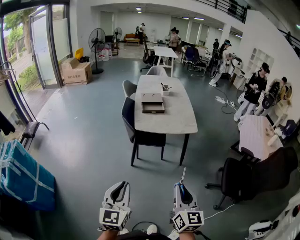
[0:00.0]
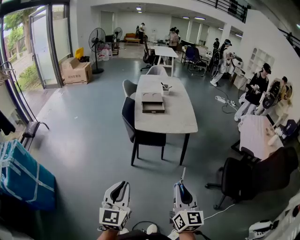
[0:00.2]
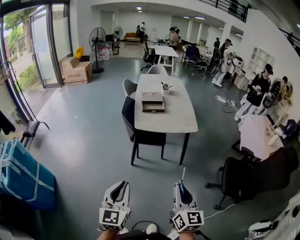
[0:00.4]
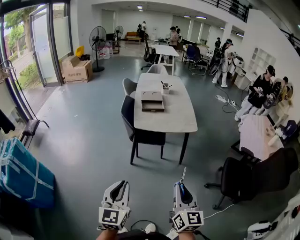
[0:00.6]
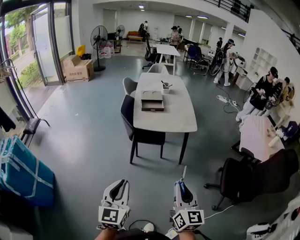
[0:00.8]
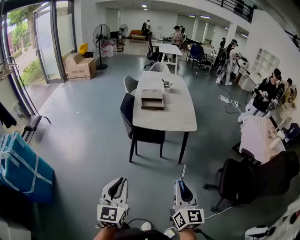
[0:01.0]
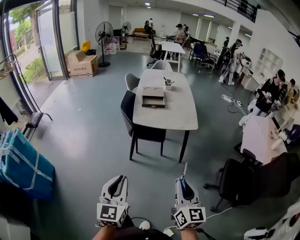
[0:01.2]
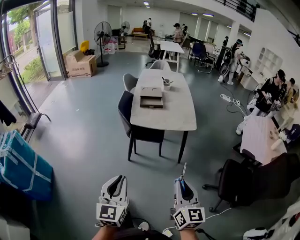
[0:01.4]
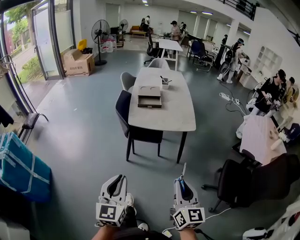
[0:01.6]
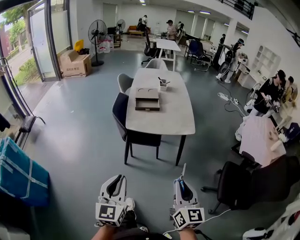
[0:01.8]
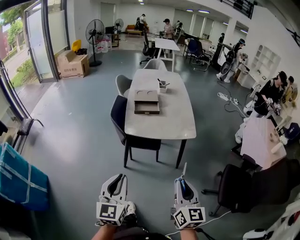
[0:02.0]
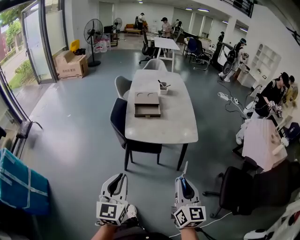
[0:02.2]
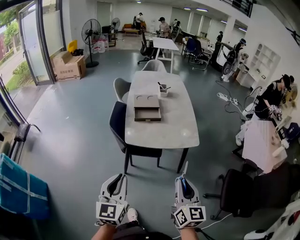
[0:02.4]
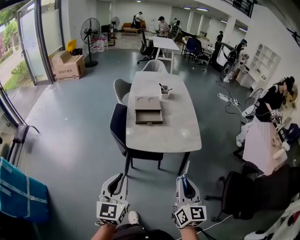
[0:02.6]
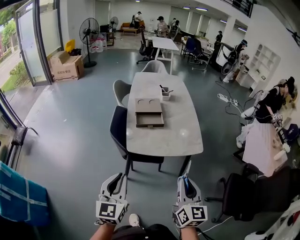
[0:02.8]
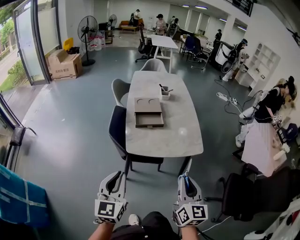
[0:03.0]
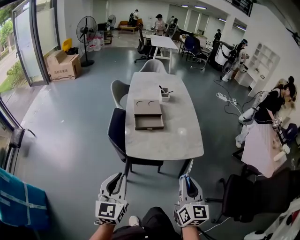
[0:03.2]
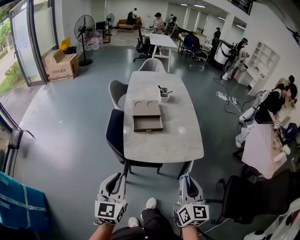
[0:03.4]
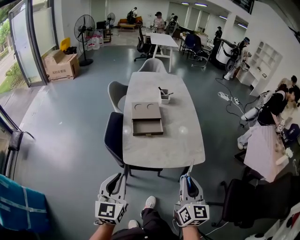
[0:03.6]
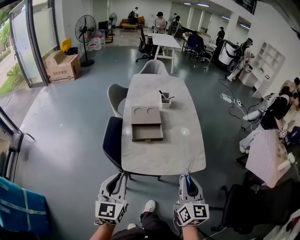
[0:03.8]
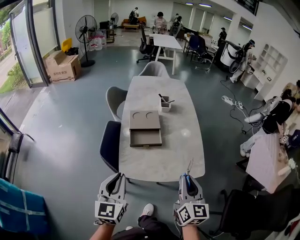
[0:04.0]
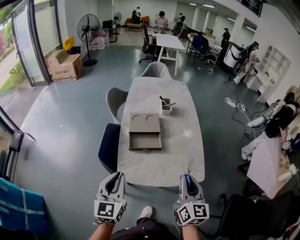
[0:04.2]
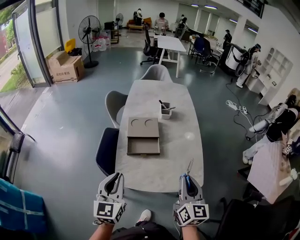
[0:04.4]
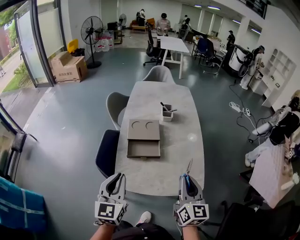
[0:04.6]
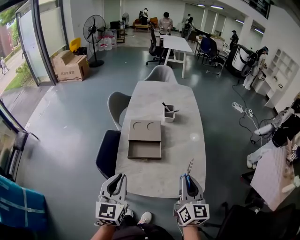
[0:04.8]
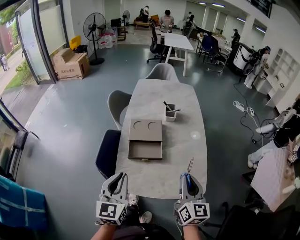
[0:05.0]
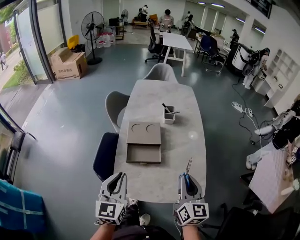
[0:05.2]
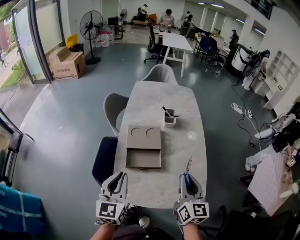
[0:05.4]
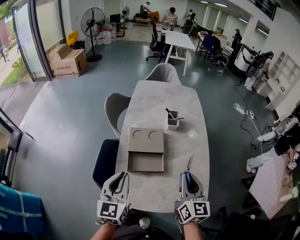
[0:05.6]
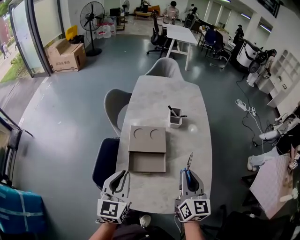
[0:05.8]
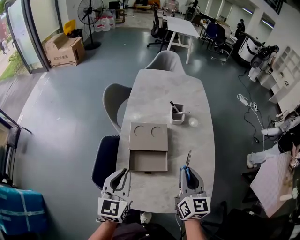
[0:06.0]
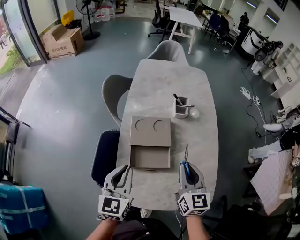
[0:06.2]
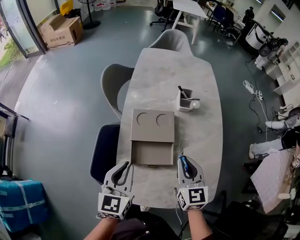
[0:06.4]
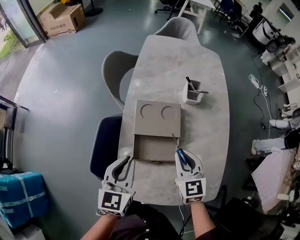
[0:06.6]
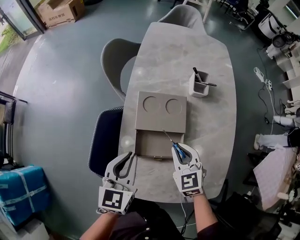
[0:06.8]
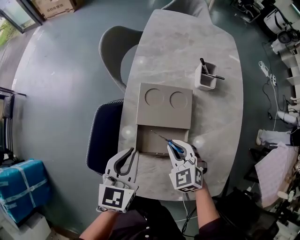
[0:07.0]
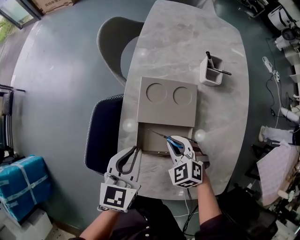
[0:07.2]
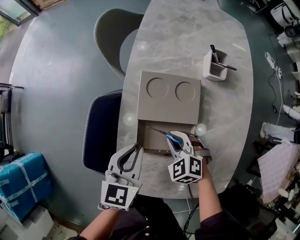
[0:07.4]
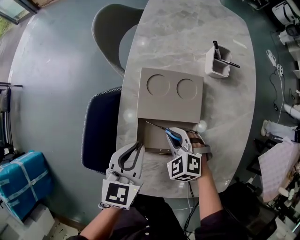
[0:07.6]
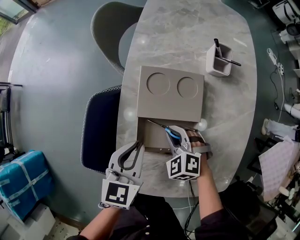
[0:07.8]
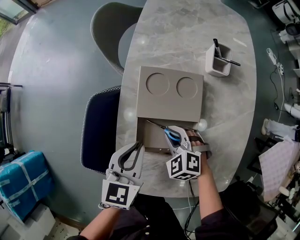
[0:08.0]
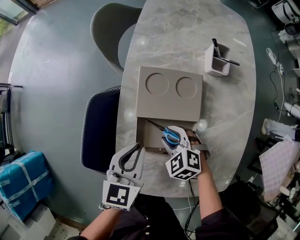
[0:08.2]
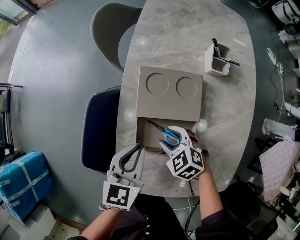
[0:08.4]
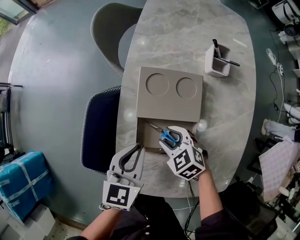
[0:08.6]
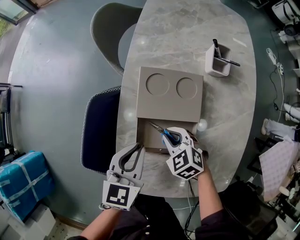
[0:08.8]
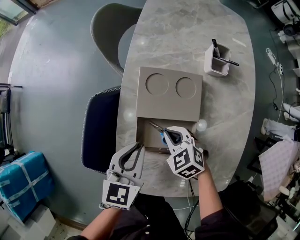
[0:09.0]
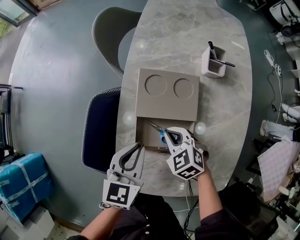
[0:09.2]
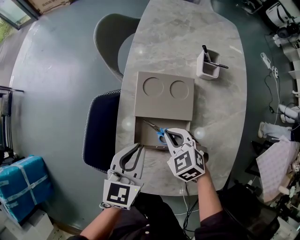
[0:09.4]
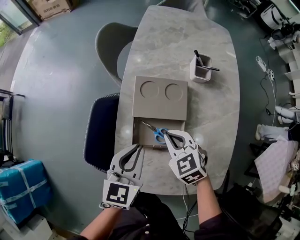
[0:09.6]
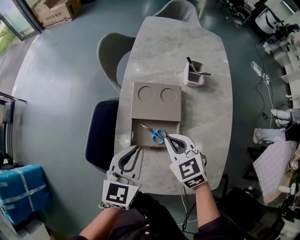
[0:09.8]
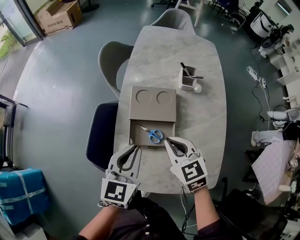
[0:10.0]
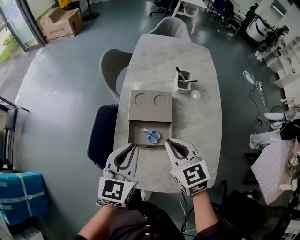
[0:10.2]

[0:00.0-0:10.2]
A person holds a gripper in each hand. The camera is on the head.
0:00.0 to 0:01.4: The grippers both shift to the right by approximately 5 cm.
0:01.4 to 0:03.0: Both grippers travel together forward, roughly 30 cm.
0:03.0 to 0:04.4: The grippers both shift forward by about 25 cm.
0:04.4 to 0:05.8: The two grippers go some 20 cm forward.
0:05.8 to 0:07.2: The left gripper goes about 20 cm downward and forward; the right gripper is displaced downward and to the left by about 30 cm, and angles its fingers downward, by about 40 degrees.
0:07.2 to 0:08.8: The right gripper opens, then closes once more.
0:08.8 to 0:10.2: The left gripper shifts approximately 20 cm upward and backward. The right gripper moves upward, approximately 25 cm, and changes its angle by approximately 40 degrees.

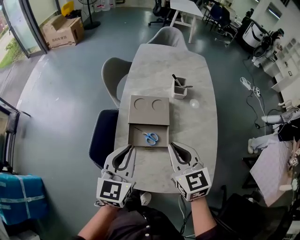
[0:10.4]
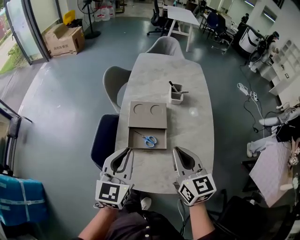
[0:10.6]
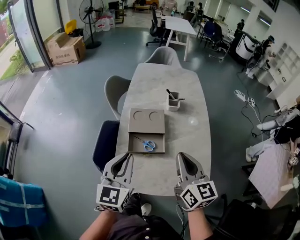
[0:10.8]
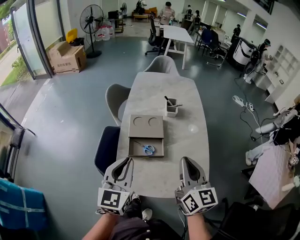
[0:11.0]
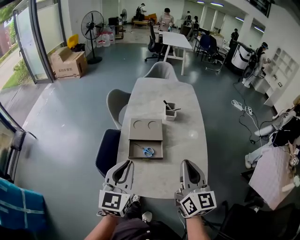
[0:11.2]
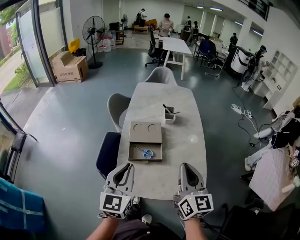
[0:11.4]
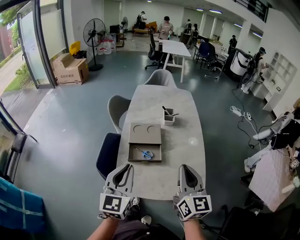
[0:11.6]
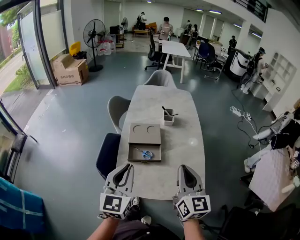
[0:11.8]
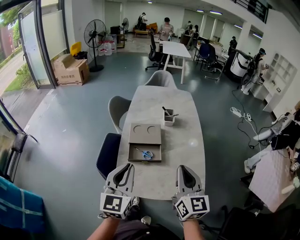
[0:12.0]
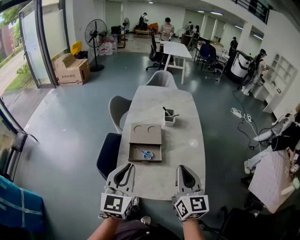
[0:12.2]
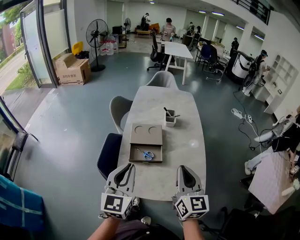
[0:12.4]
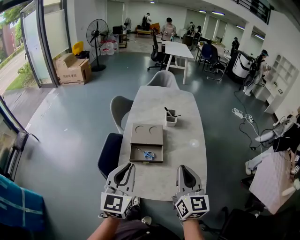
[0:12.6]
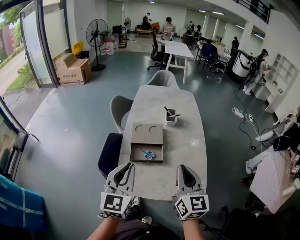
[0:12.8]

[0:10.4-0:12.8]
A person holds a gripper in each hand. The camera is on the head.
0:10.4 to 0:11.6: The left gripper moves backward and upward, approximately 15 cm. The right gripper moves backward, upward and to the right, some 20 cm, and turns by some 30 degrees.
0:11.6 to 0:12.8: The grippers move only a little.

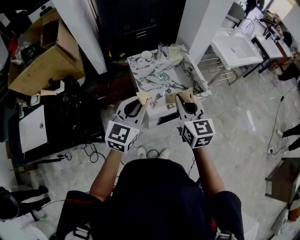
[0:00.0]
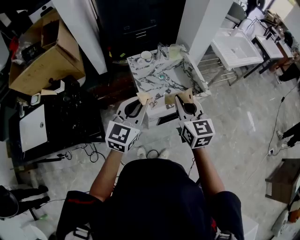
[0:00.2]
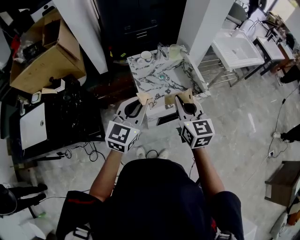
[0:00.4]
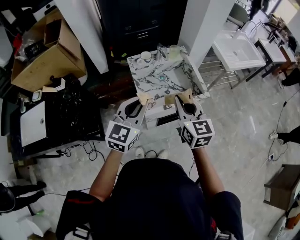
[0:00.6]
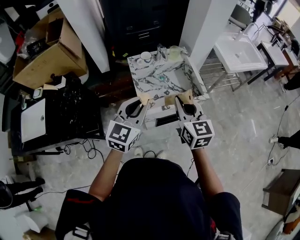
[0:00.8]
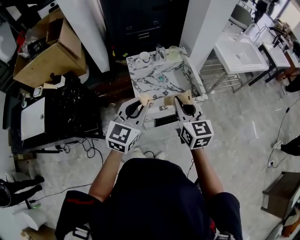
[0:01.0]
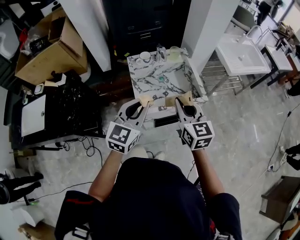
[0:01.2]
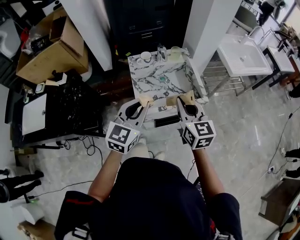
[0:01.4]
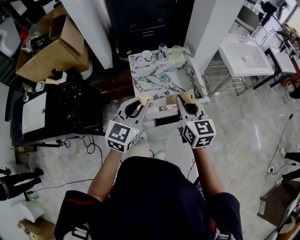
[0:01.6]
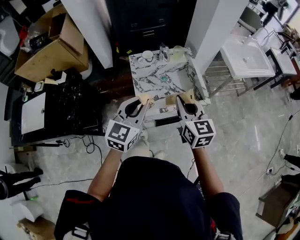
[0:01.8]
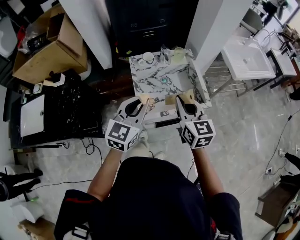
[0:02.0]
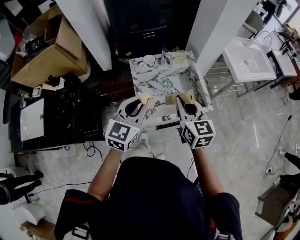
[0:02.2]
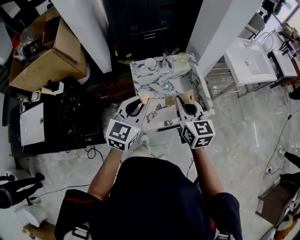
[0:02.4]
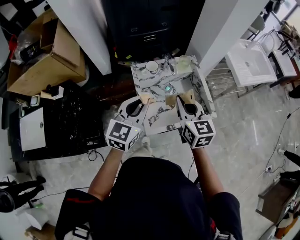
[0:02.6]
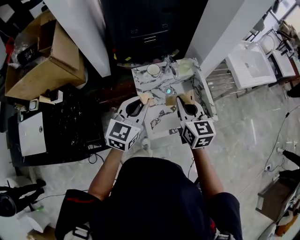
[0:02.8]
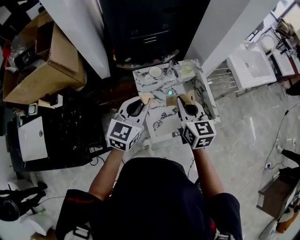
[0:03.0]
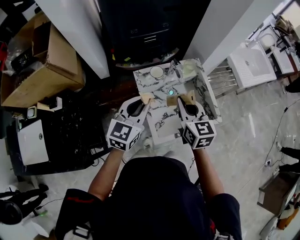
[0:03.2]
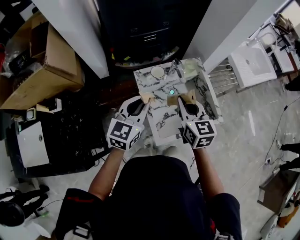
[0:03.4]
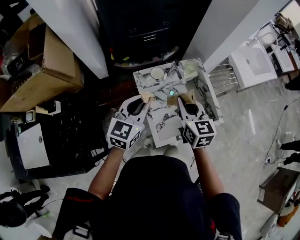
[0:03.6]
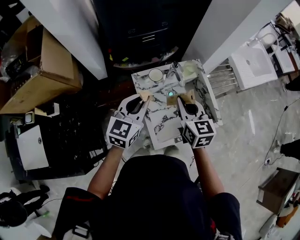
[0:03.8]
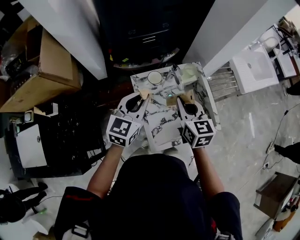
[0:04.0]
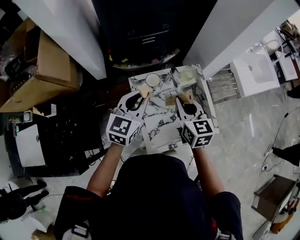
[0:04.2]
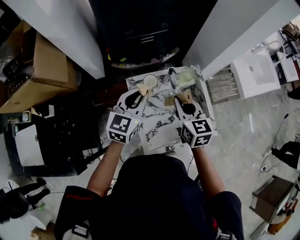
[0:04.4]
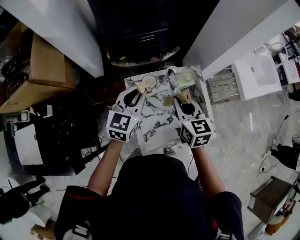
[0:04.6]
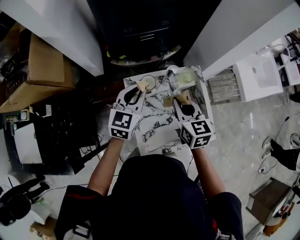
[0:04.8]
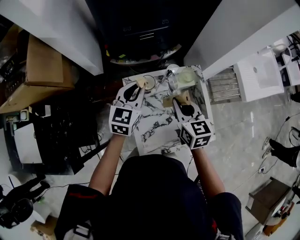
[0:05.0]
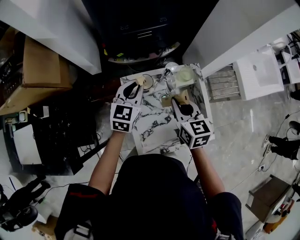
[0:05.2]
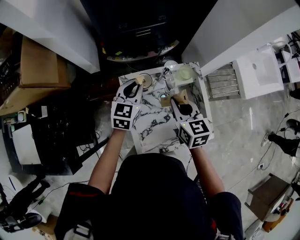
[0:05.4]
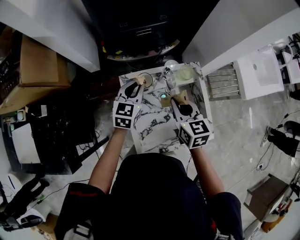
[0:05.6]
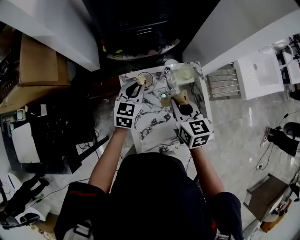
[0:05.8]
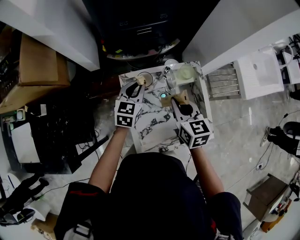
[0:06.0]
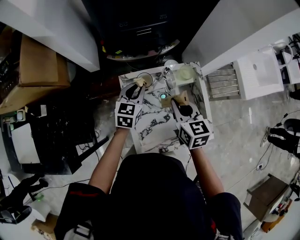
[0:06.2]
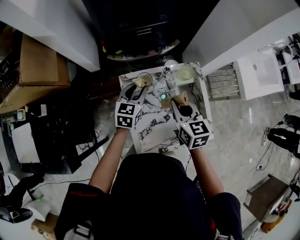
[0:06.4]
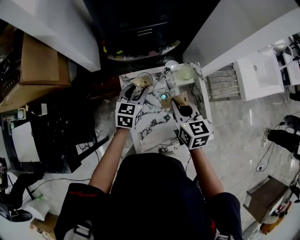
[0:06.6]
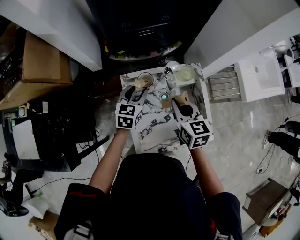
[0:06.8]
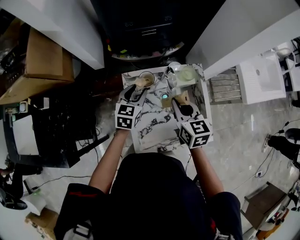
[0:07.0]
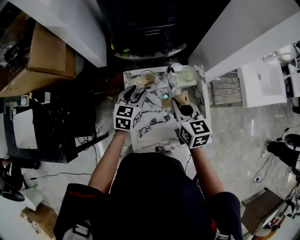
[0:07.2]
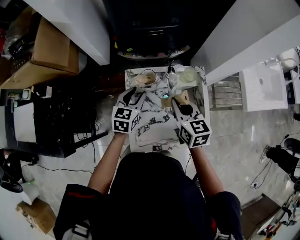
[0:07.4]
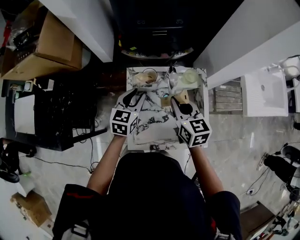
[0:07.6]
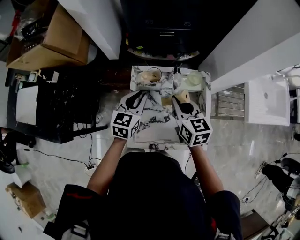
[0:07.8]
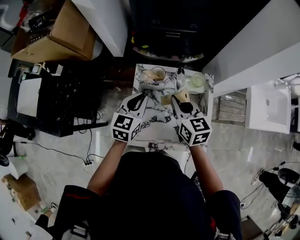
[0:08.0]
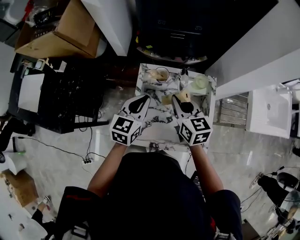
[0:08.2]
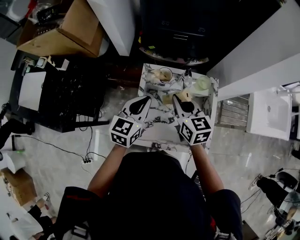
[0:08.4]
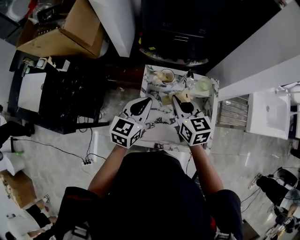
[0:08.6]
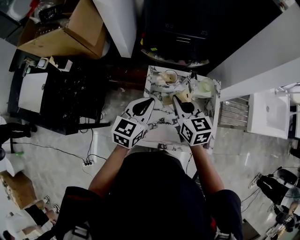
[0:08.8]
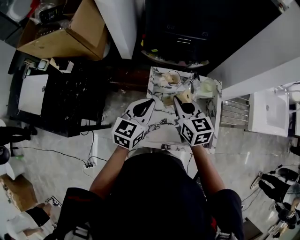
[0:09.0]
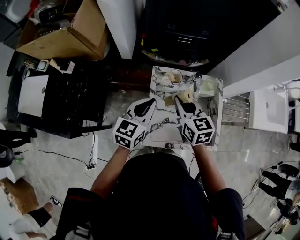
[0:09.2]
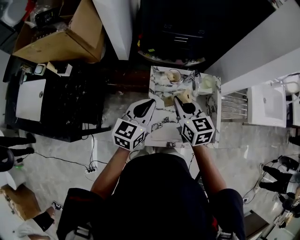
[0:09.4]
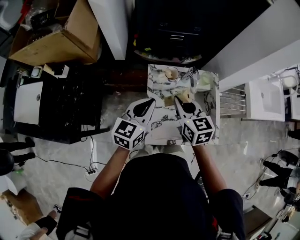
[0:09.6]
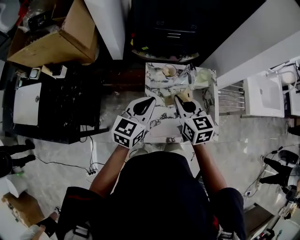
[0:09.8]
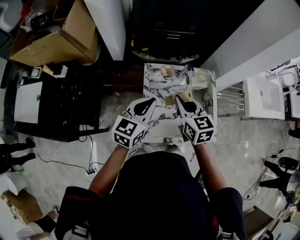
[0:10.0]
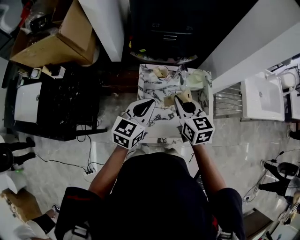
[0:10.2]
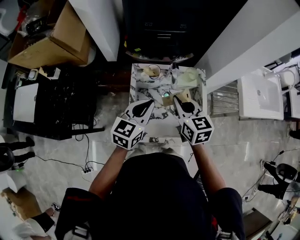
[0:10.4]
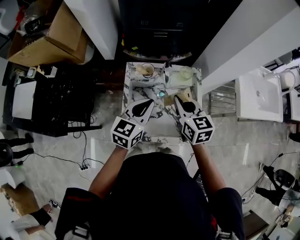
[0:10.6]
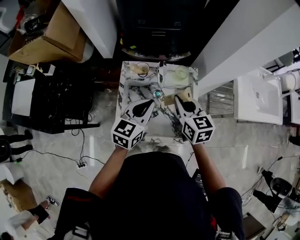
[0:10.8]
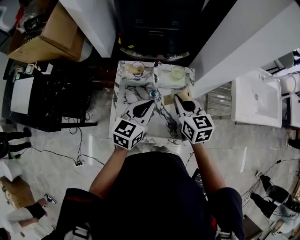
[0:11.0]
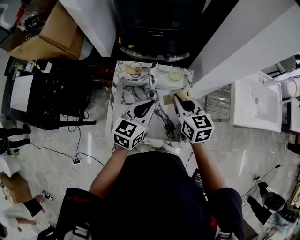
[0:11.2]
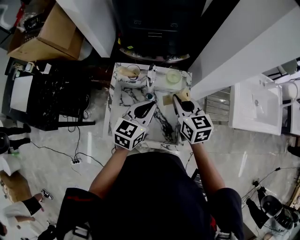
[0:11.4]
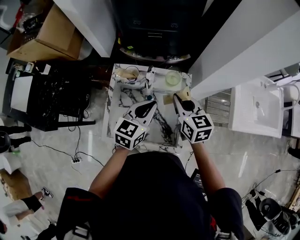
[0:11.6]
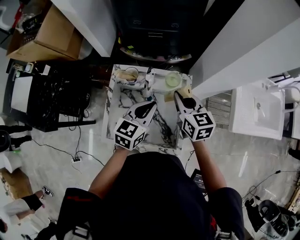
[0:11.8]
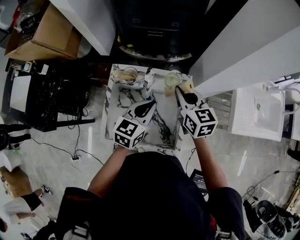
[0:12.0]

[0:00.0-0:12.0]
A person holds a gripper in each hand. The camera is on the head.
0:00.0 to 0:01.6: Both grippers travel together to the right, some 5 cm.
0:01.6 to 0:03.0: The grippers both shift forward and to the left by roughly 20 cm.
0:03.0 to 0:04.4: The two grippers go about 10 cm forward.
0:04.4 to 0:06.0: The right gripper ends up some 5 cm from where it was, while the left gripper shifts about 15 cm downward and forward.
0:06.0 to 0:07.6: The left gripper shifts about 5 cm backward, and opens up.
0:07.6 to 0:09.0: The right gripper heads to the left, covering some 10 cm. The left gripper moves upward and backward, some 10 cm, and closes.
0:09.0 to 0:10.4: The two grippers go some 10 cm to the right.
0:10.4 to 0:12.0: The two grippers go approximately 15 cm to the right and forward.
